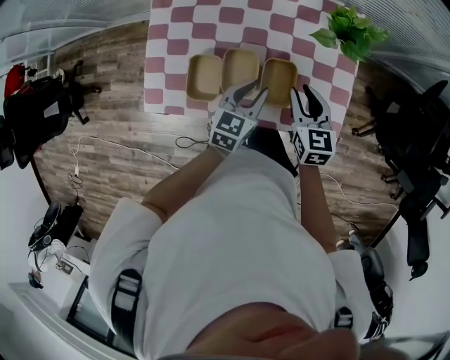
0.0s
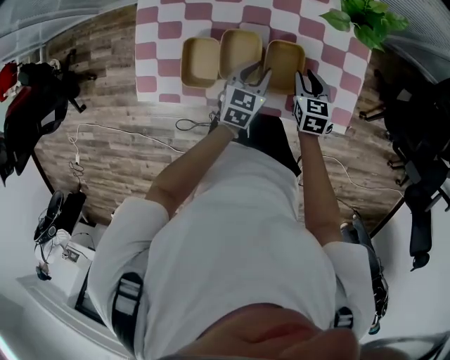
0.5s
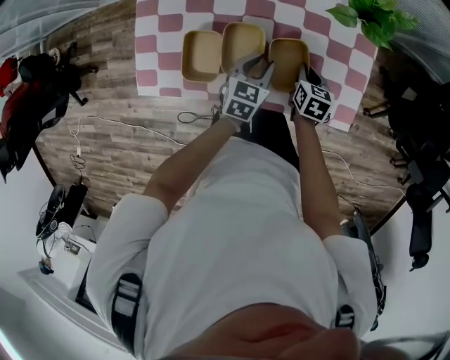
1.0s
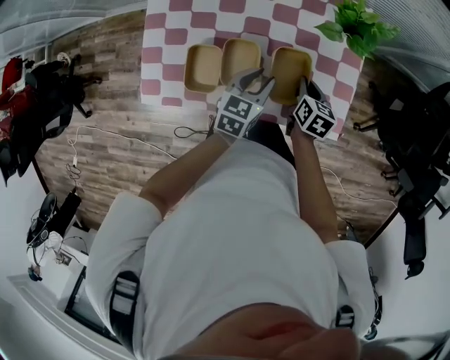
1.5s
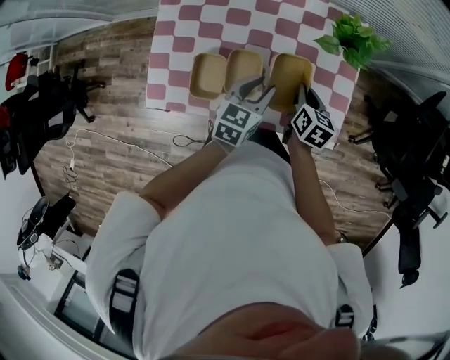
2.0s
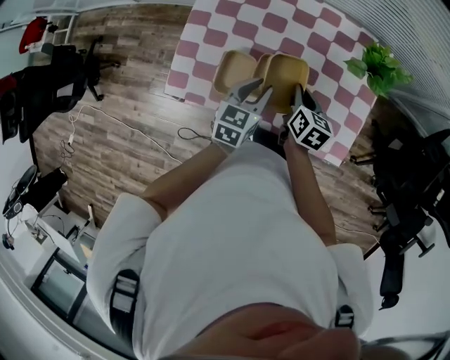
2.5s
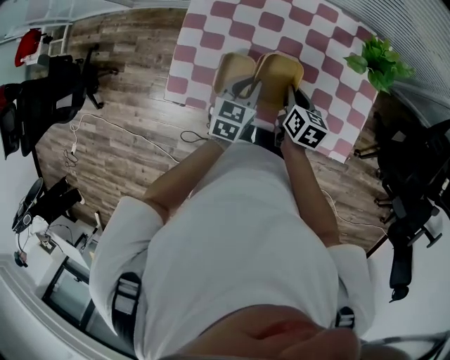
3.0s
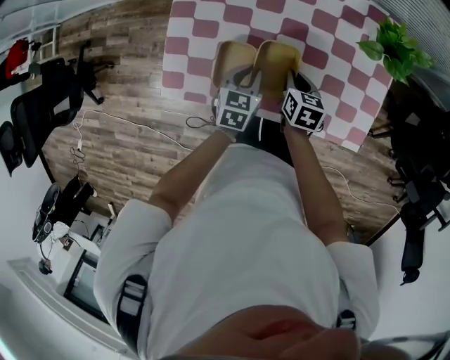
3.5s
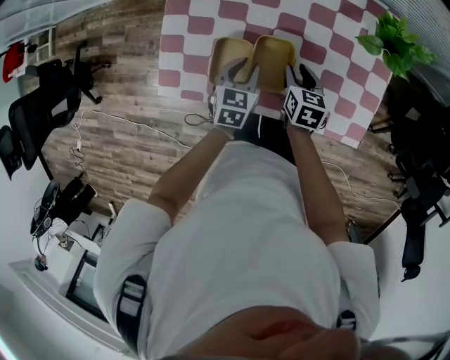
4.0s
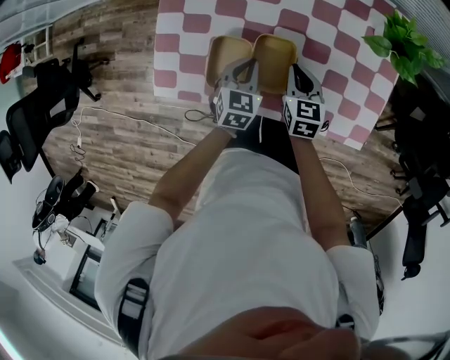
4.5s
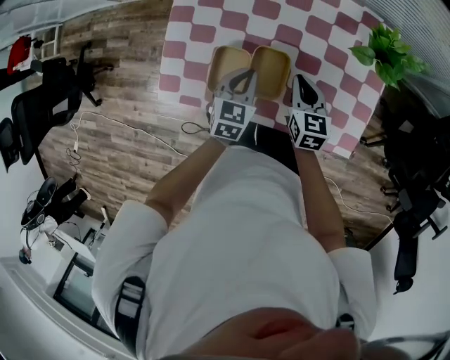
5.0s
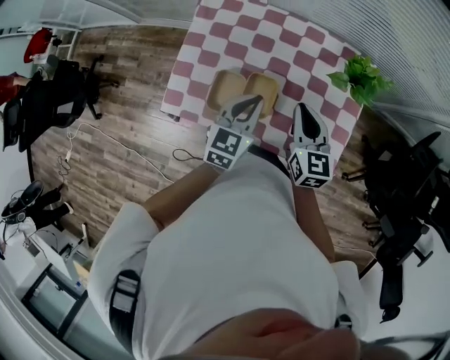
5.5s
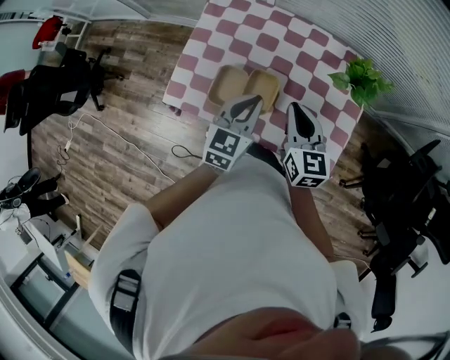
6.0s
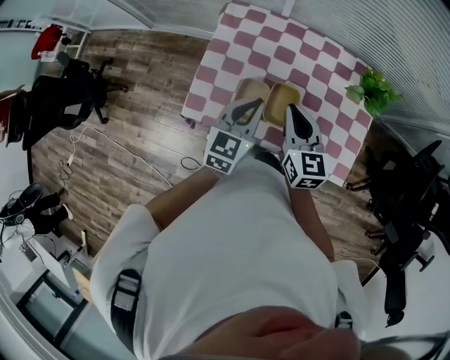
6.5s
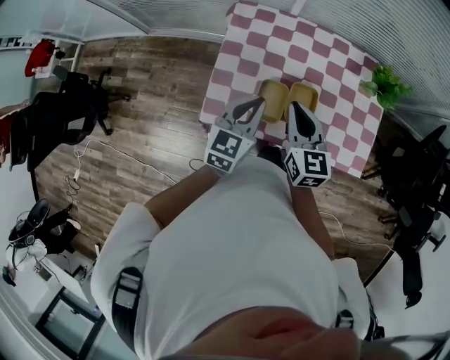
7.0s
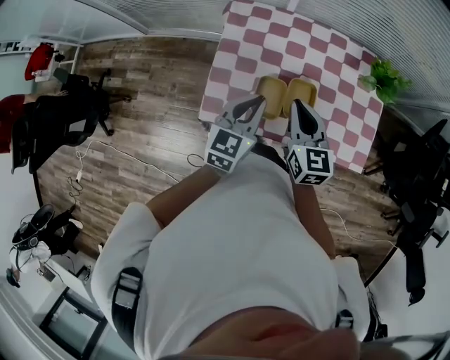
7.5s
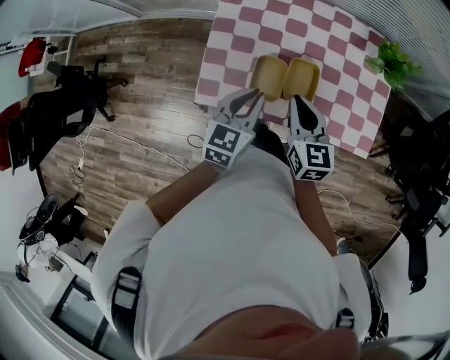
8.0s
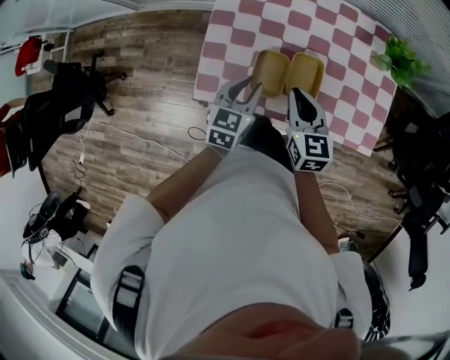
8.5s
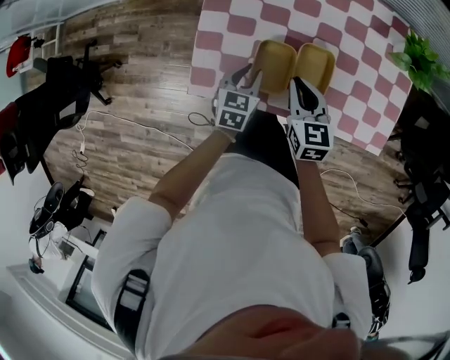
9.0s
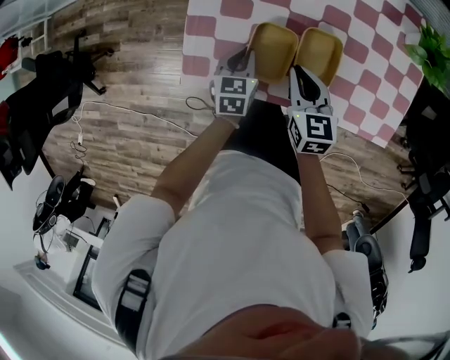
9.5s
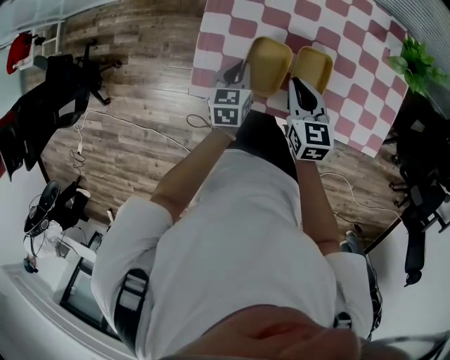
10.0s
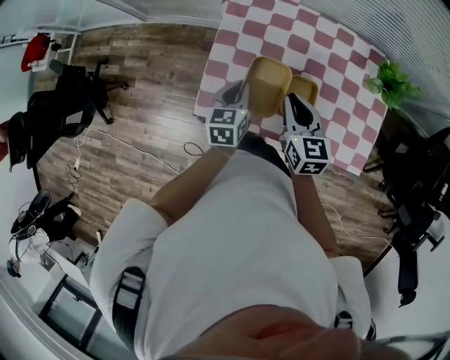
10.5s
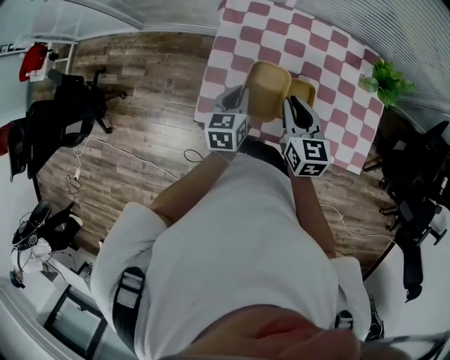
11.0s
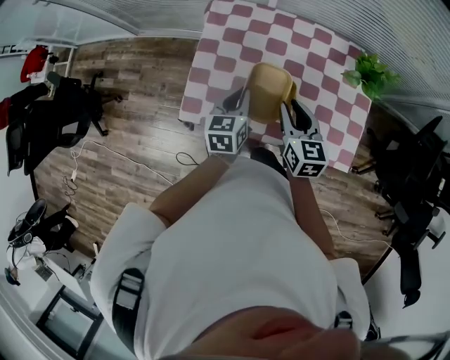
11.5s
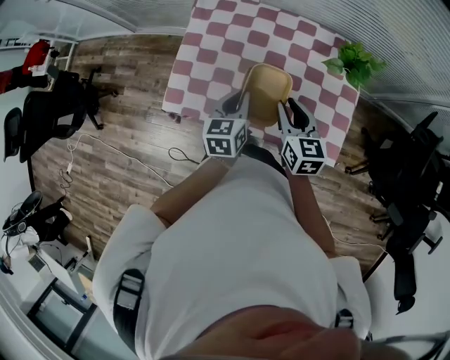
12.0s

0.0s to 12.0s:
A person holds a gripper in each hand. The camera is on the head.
0.0s to 2.0s: The right gripper goes downward and returns, roughly 20 cm each way, rotates some 30 degrees, and closes its fingers; the left gripper travels downward and back again, some 10 cm each way.
2.0s to 4.0s: Both grippers travel together to the left and downward, some 15 cm. The right gripper opens its fingers.
4.0s to 6.0s: Both grippers move upward, approximately 20 cm. The right gripper rotates about 30 degrees, and closes; the left gripper turns by approximately 20 degrees, and closes its fingers.
6.0s to 8.0s: Both grippers travel together to the left, some 15 cm.
8.0s to 10.0s: The right gripper shifts approximately 10 cm downward, while the left gripper heads downward, covering roughly 15 cm, and swivels about 20 degrees.
10.0s to 12.0s: The two grippers go roughly 20 cm to the right and upward.

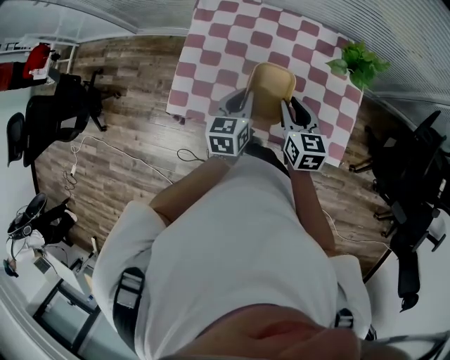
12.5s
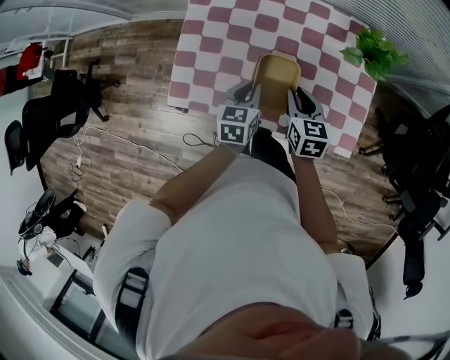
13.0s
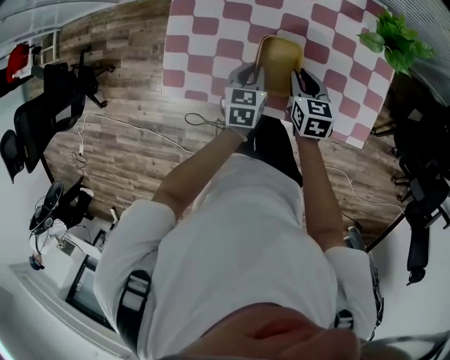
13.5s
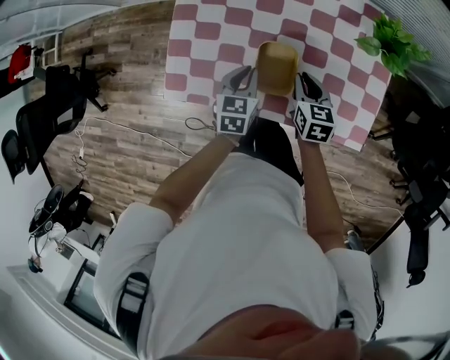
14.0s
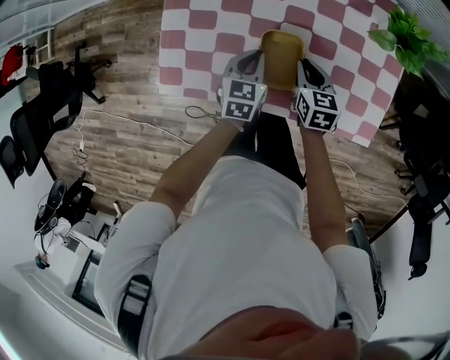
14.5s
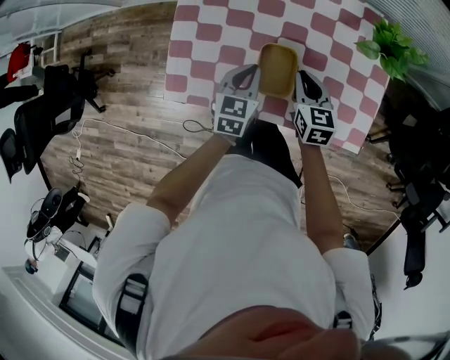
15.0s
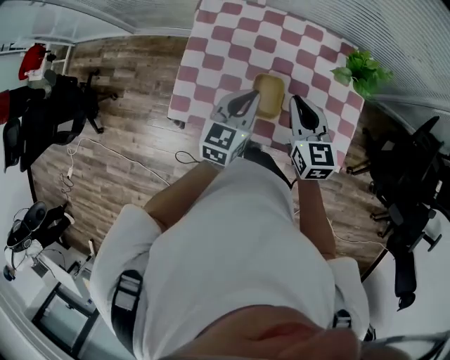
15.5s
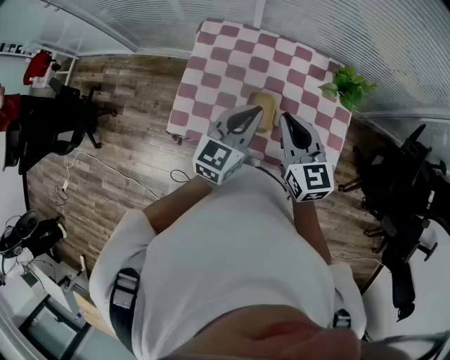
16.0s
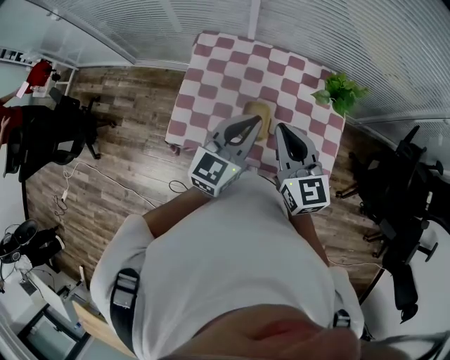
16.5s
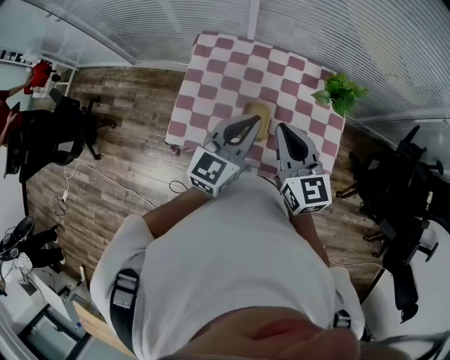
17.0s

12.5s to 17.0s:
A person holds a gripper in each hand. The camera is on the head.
12.5s to 14.5s: The two grippers go approximately 20 cm downward.
14.5s to 17.0s: The two grippers go some 35 cm upward. The left gripper points its fingers some 40 degrees further upward. Meanwhile the right gripper tilts its fingers some 30 degrees upward.

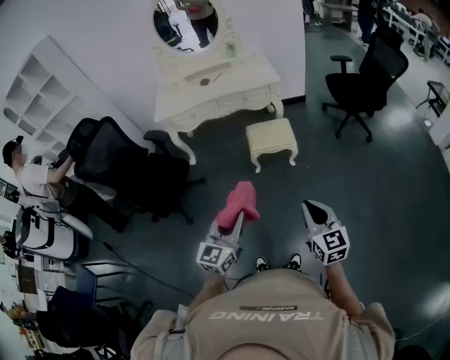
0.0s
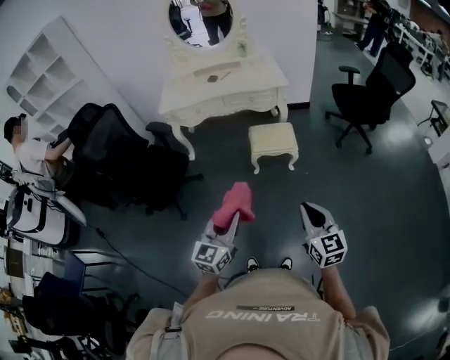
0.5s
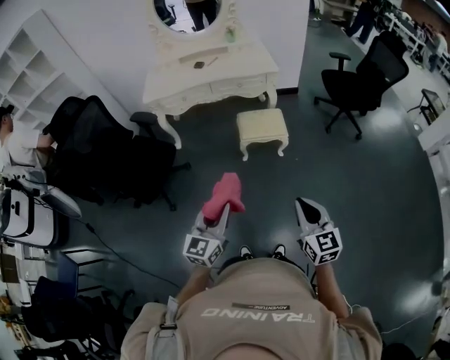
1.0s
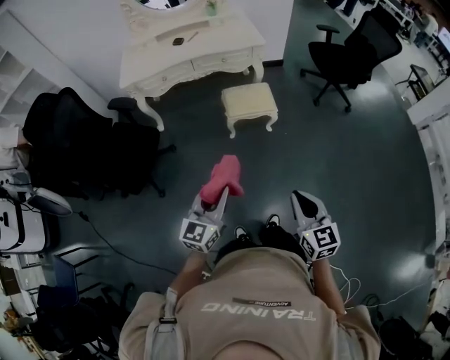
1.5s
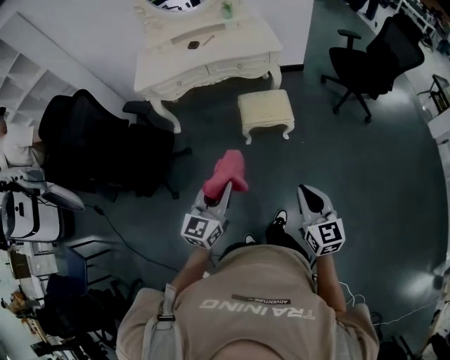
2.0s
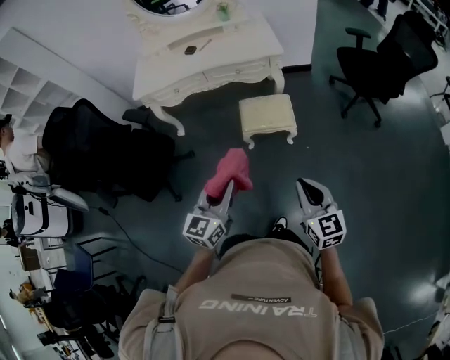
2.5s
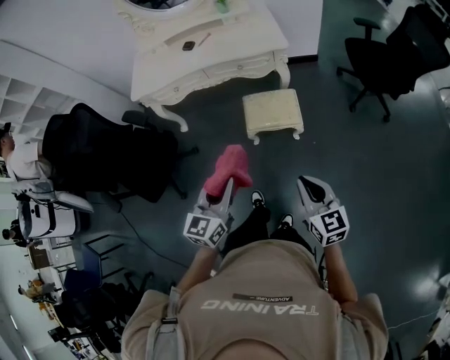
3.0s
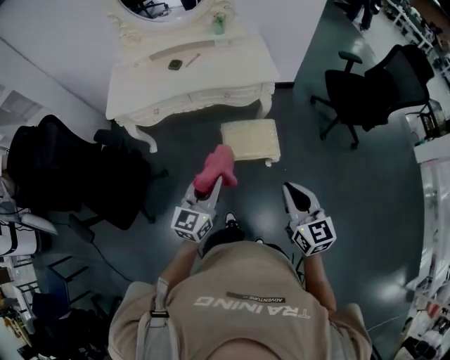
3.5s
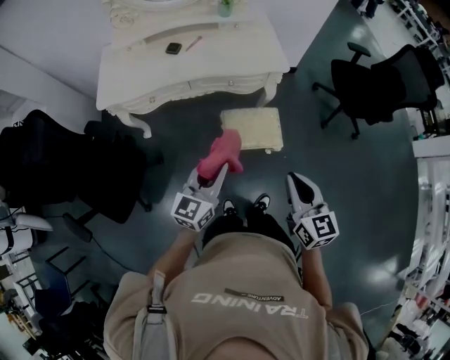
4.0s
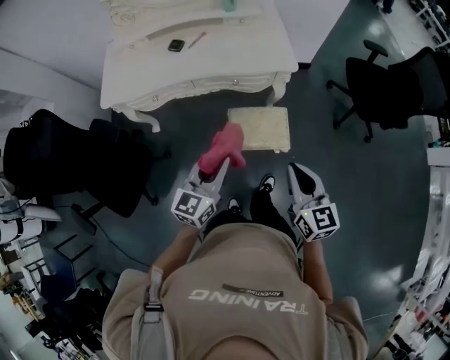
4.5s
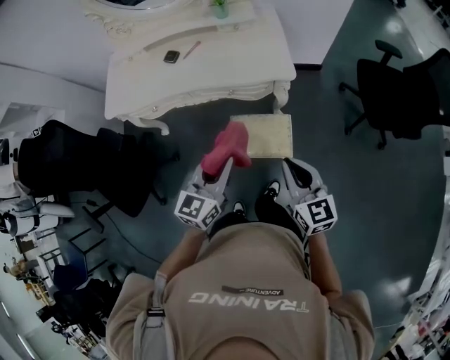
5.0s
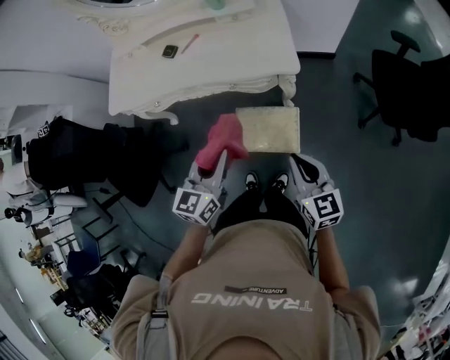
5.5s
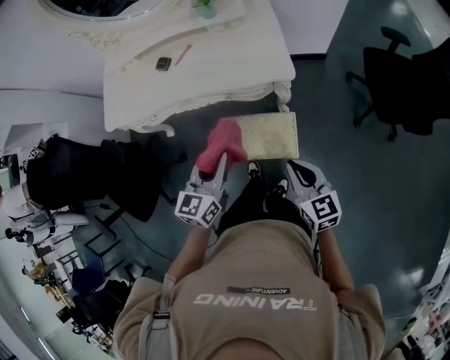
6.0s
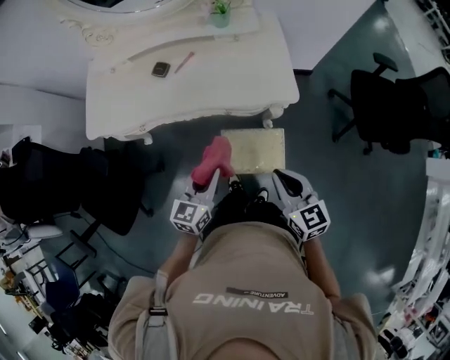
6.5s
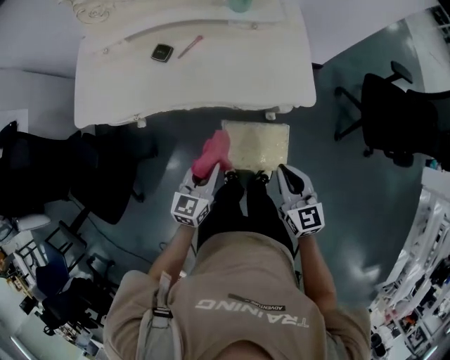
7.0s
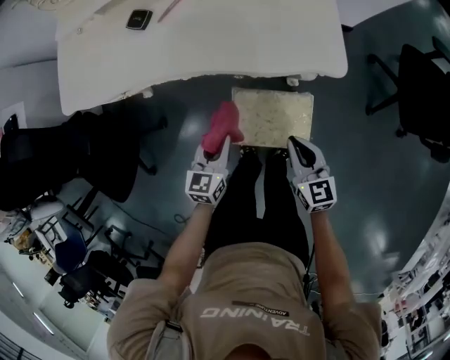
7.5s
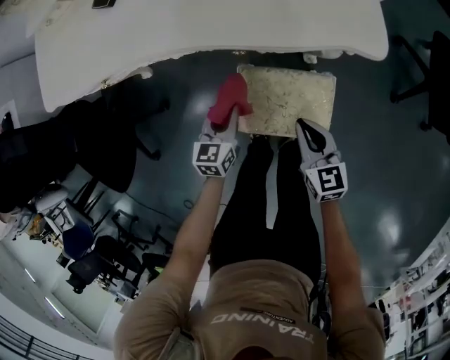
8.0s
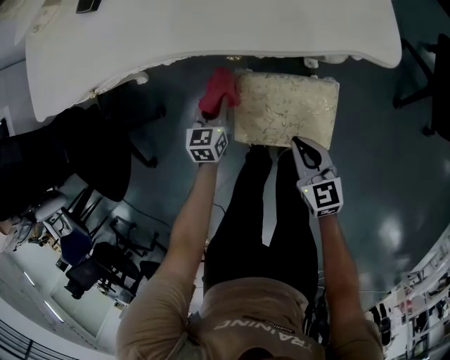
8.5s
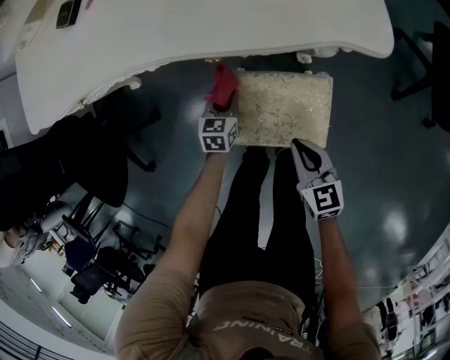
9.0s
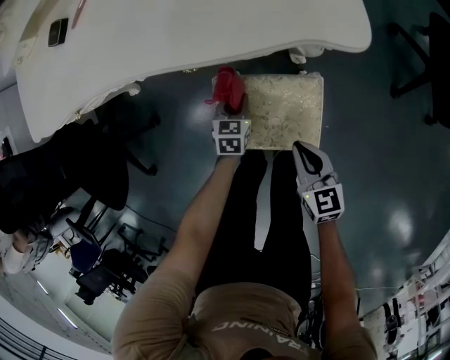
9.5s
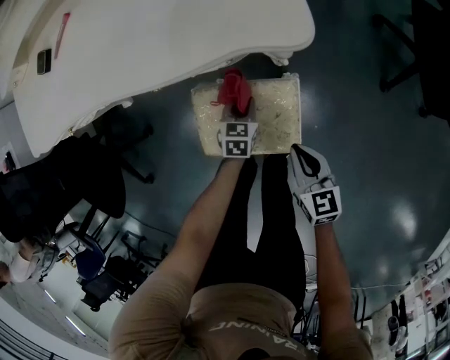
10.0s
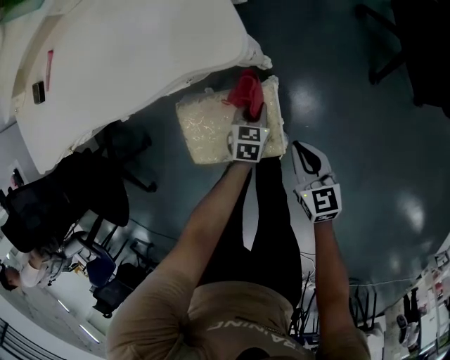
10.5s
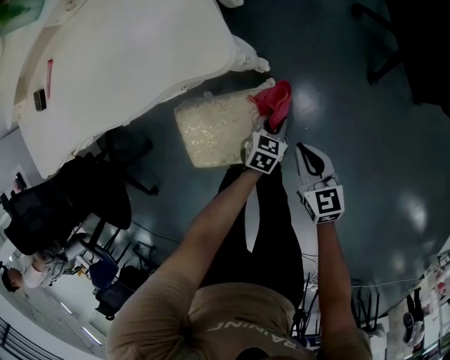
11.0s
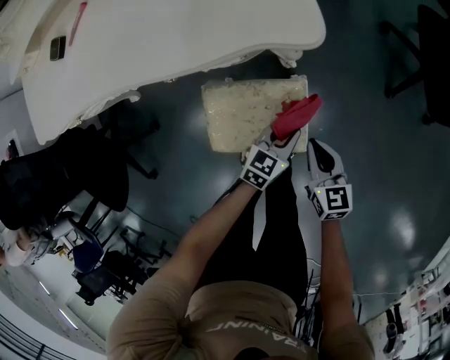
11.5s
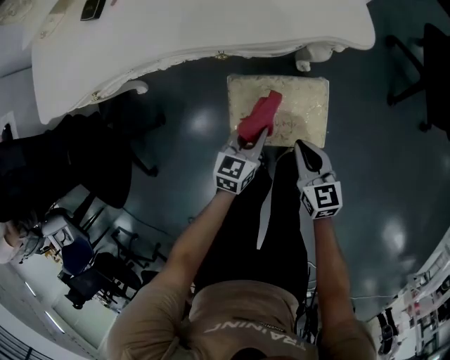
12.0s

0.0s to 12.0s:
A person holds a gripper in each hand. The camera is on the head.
0.0s to 2.0s: Both grippers move forward, approximately 10 cm.
2.0s to 4.0s: The two grippers go some 40 cm forward.
4.0s to 6.0s: The left gripper travels forward and to the right by about 25 cm. The right gripper shifts approximately 25 cm forward, to the right and downward.
6.0s to 8.0s: The right gripper goes about 40 cm downward and forward; the left gripper is displaced downward by some 40 cm, and rotates roughly 20 degrees.
8.0s to 10.0s: The right gripper goes approximately 15 cm to the right, downward and backward; the left gripper goes some 25 cm to the right and downward, and rotates approximately 20 degrees.
10.0s to 12.0s: The right gripper heads to the left, covering some 10 cm. Meanwhile the left gripper shifts about 15 cm upward and backward, and travels to the right and back again, roughly 20 cm each way.
